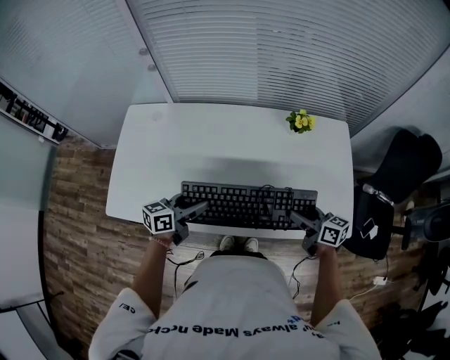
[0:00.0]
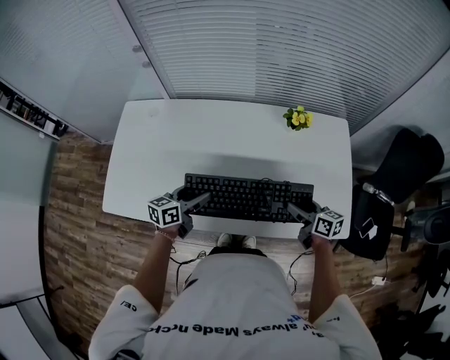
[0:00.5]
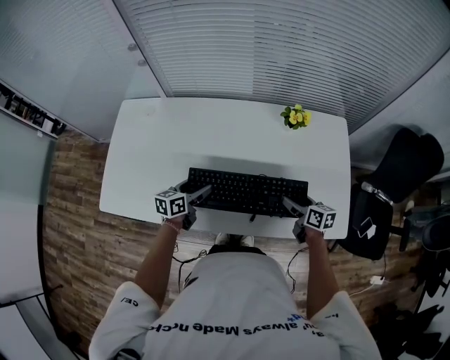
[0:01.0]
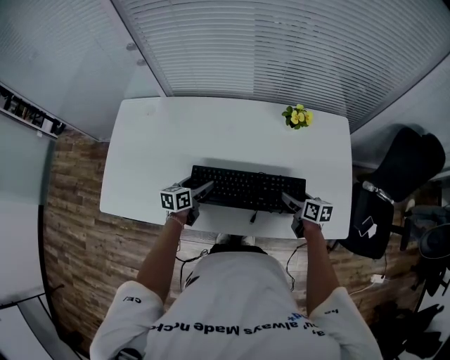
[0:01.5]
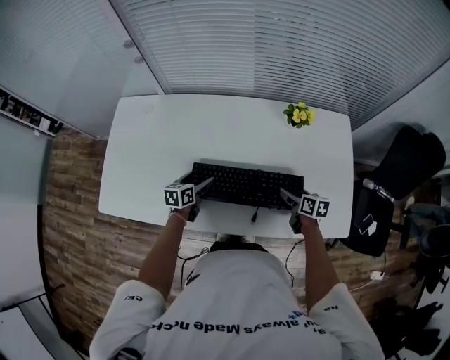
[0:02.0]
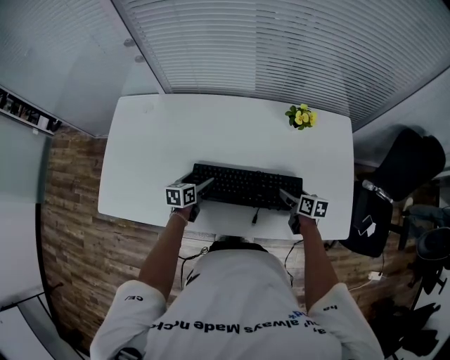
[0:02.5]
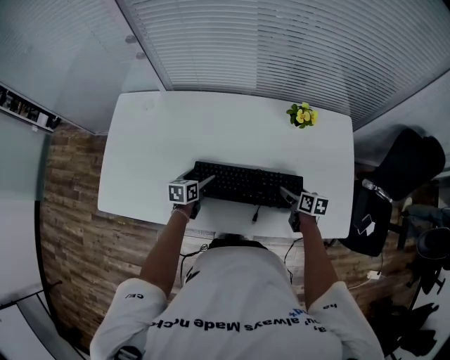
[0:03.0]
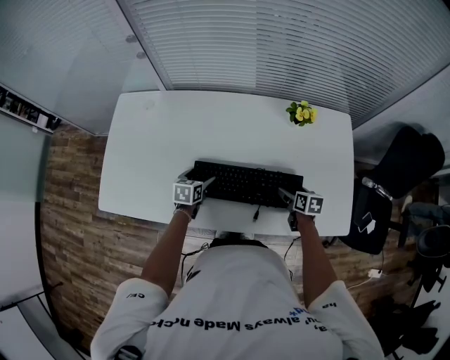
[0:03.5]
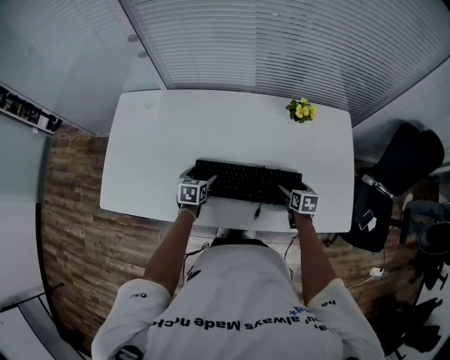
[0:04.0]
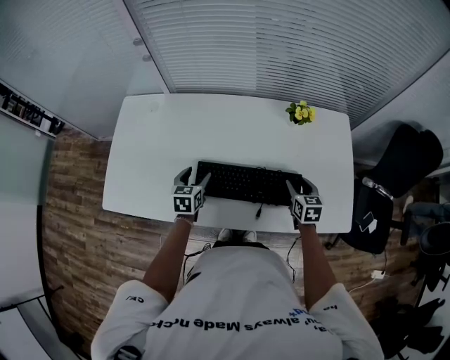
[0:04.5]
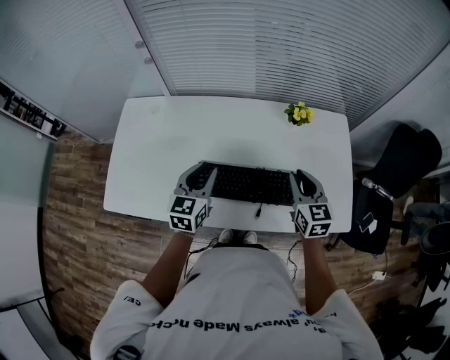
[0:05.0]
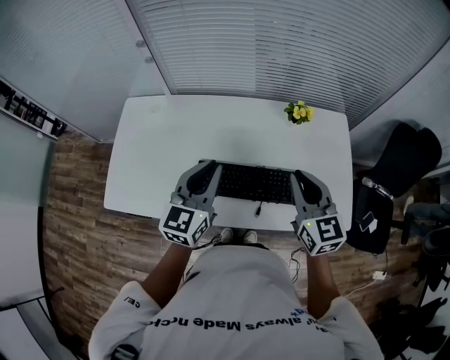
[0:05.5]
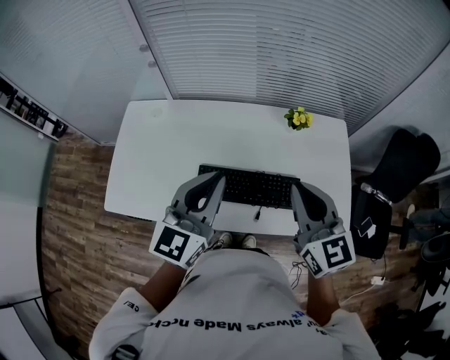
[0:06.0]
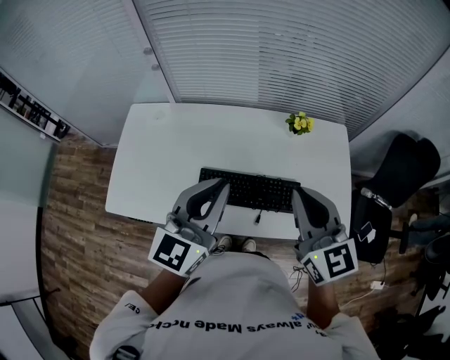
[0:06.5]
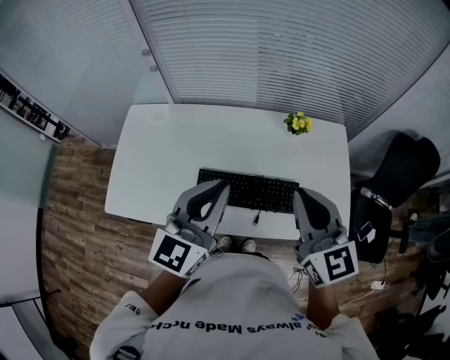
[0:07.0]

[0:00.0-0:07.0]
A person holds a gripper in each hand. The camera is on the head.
0:00.0 to 0:02.0: Both grippers travel together downward and forward, about 15 cm. The left gripper turns by roughly 30 degrees. Meanwhile the right gripper turns by about 30 degrees.
0:02.0 to 0:03.5: The grippers stay close to where they were, moving slightly.
0:03.5 to 0:05.0: Both grippers move upward, roughly 25 cm. The right gripper swivels about 40 degrees, and closes up. Meanwhile the left gripper swivels some 30 degrees, and closes its fingers.
0:05.0 to 0:07.0: The right gripper heads upward and backward, covering roughly 20 cm, while the left gripper heads upward, covering roughly 20 cm, and turns by some 20 degrees.

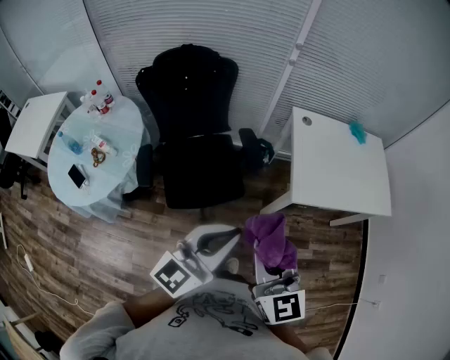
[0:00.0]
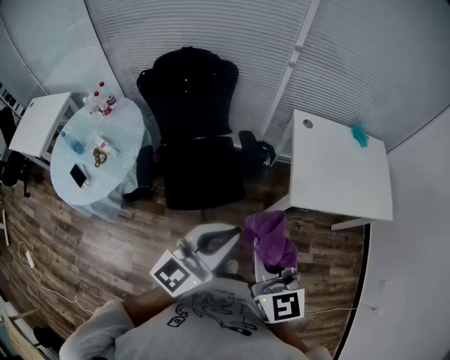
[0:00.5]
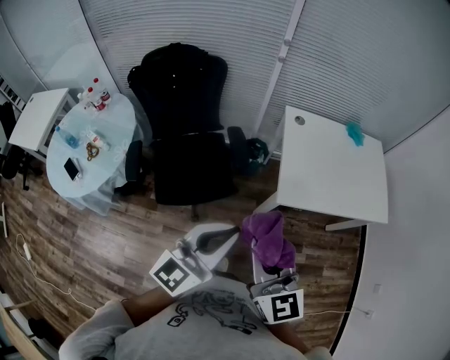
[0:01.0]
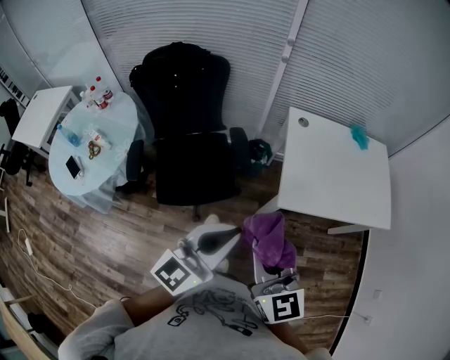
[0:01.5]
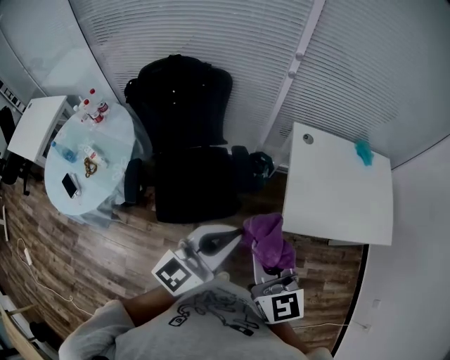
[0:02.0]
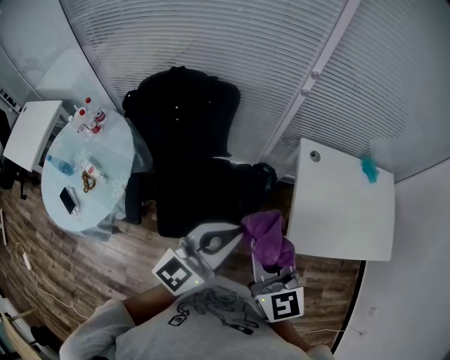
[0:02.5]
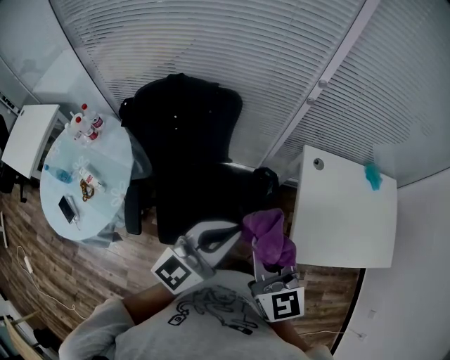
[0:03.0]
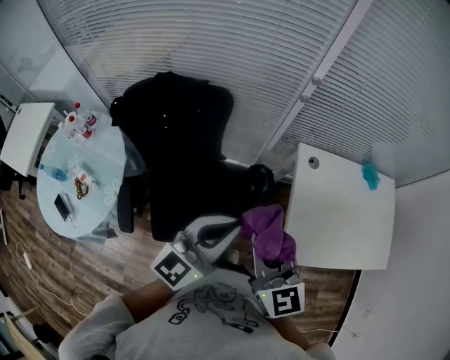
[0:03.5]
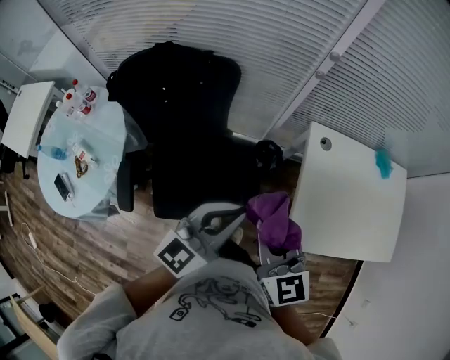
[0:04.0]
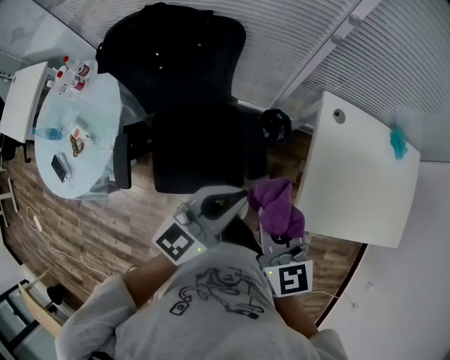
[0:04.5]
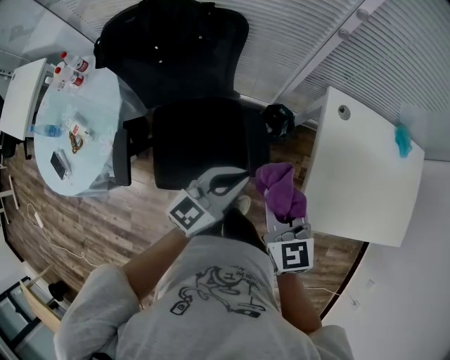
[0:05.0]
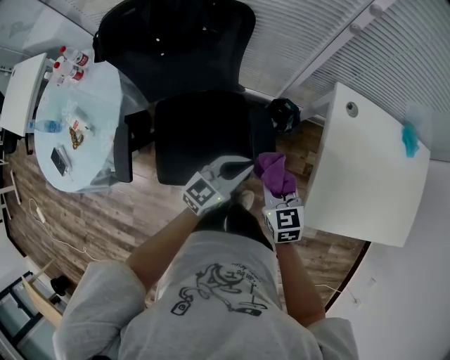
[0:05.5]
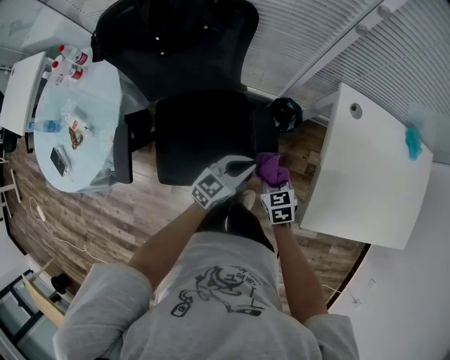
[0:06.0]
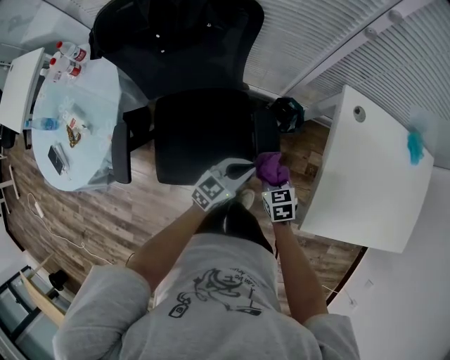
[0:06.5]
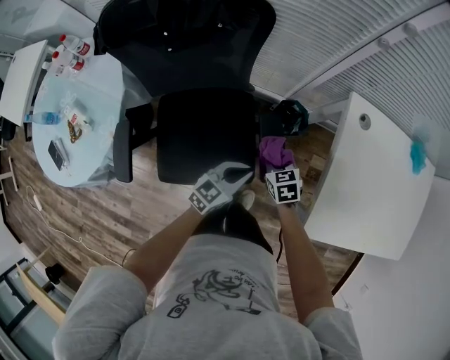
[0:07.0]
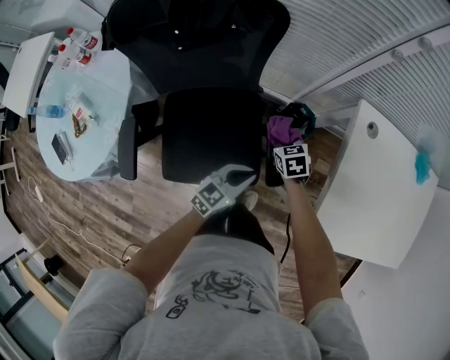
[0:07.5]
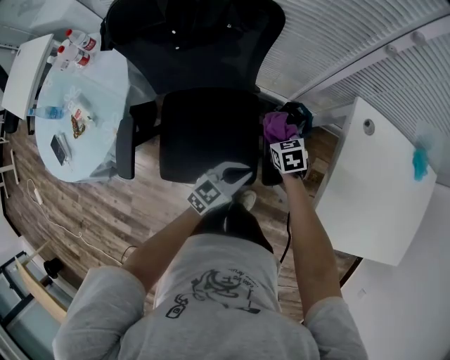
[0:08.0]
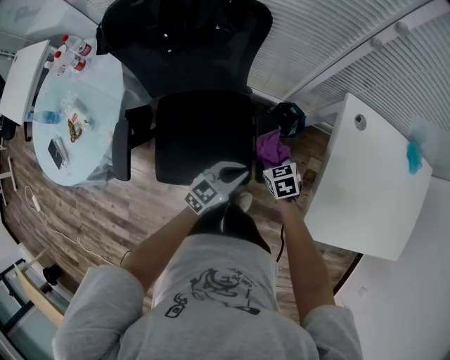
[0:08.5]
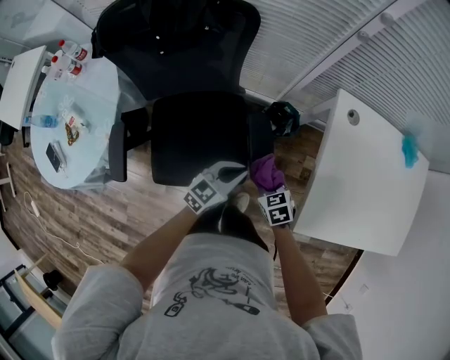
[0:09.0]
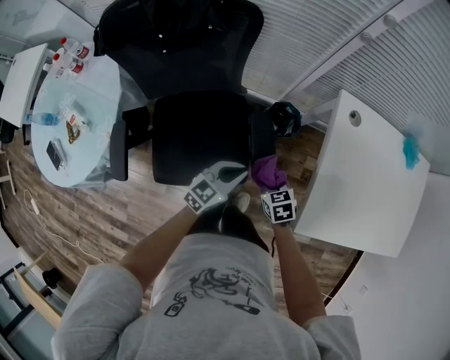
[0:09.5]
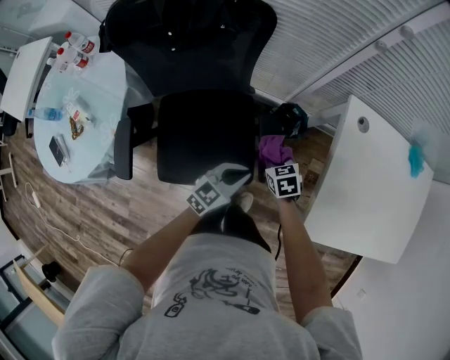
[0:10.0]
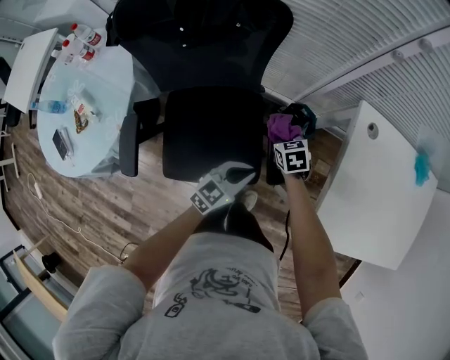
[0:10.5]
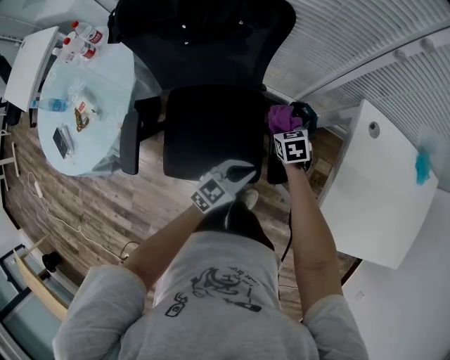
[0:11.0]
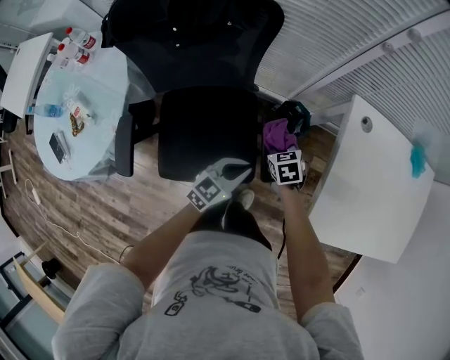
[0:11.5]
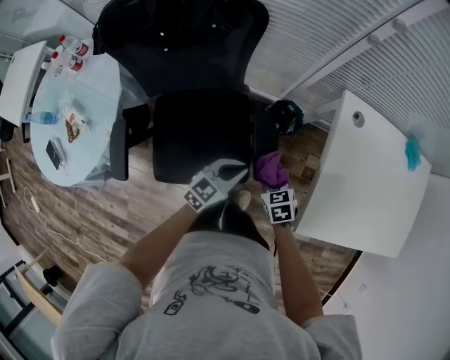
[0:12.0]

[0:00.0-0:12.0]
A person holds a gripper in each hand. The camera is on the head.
0:00.0 to 0:02.0: The left gripper heads forward and to the right, covering approximately 15 cm. Meanwhile the right gripper moves forward, some 15 cm.
0:02.0 to 0:04.0: The two grippers go some 20 cm forward.
0:04.0 to 0:06.0: Both grippers move downward, about 35 cm. The right gripper points its fingers some 30 degrees further downward.
0:06.0 to 0:08.0: The right gripper is displaced forward by about 15 cm.
0:08.0 to 0:10.0: The right gripper travels backward by some 5 cm.
0:10.0 to 0:12.0: The right gripper is displaced backward by about 10 cm.

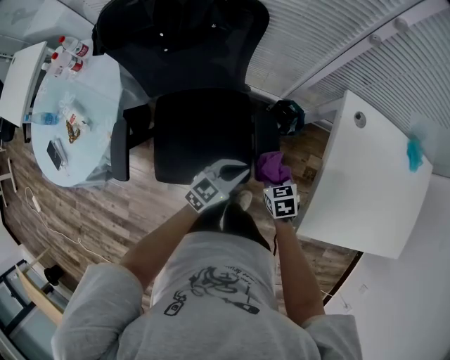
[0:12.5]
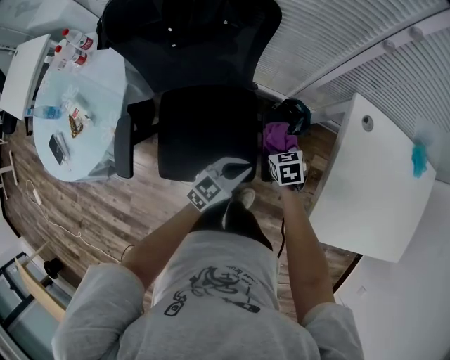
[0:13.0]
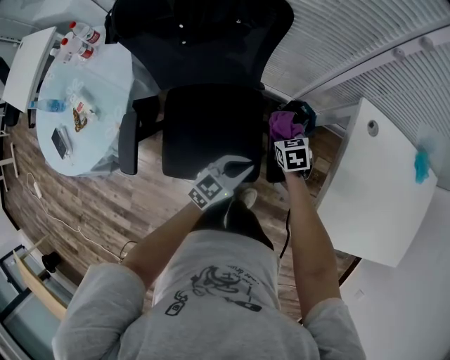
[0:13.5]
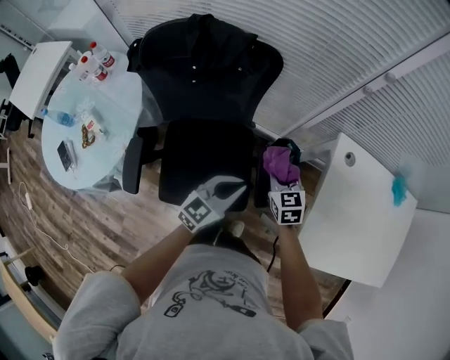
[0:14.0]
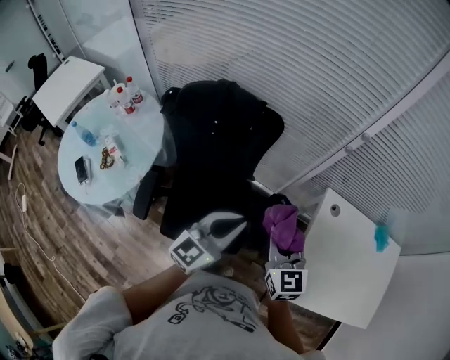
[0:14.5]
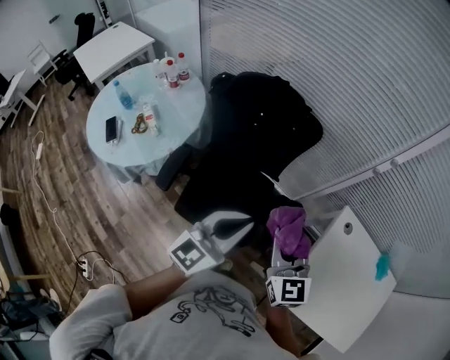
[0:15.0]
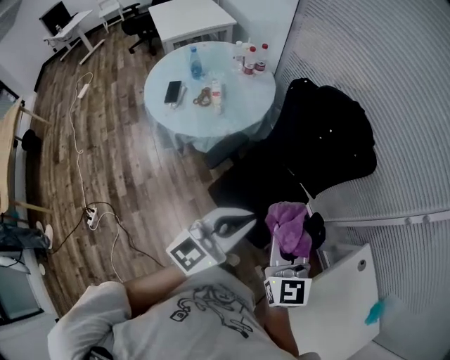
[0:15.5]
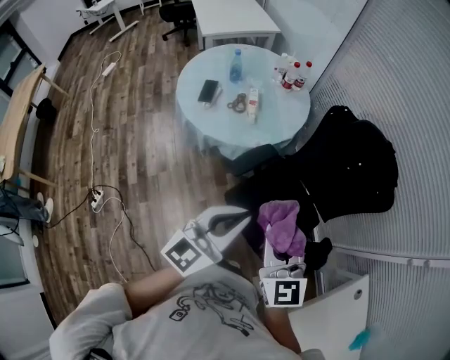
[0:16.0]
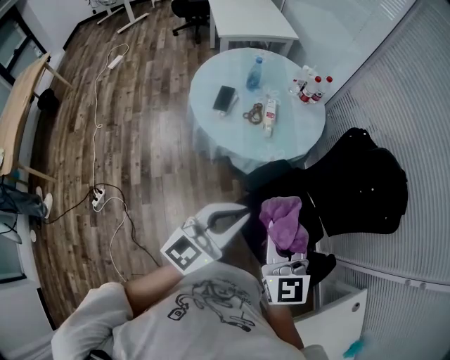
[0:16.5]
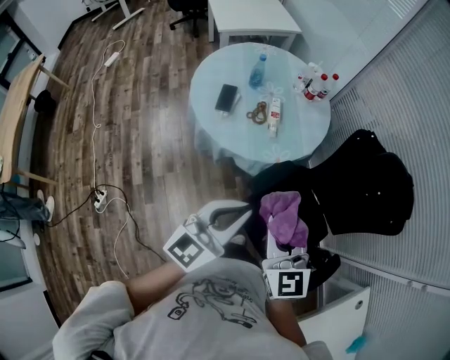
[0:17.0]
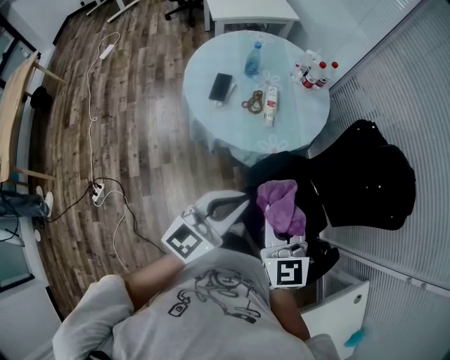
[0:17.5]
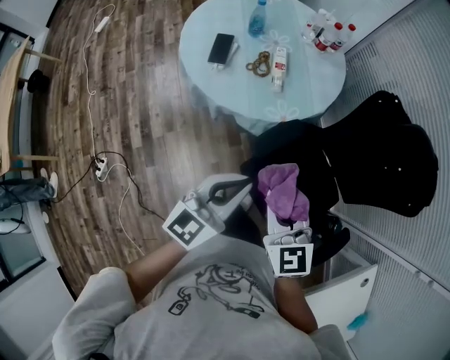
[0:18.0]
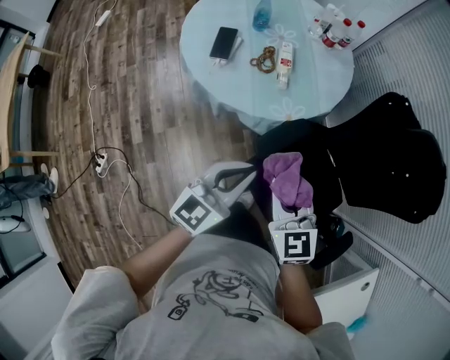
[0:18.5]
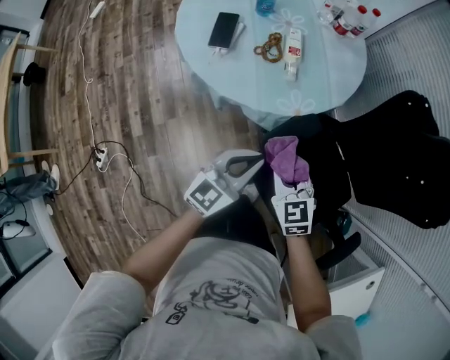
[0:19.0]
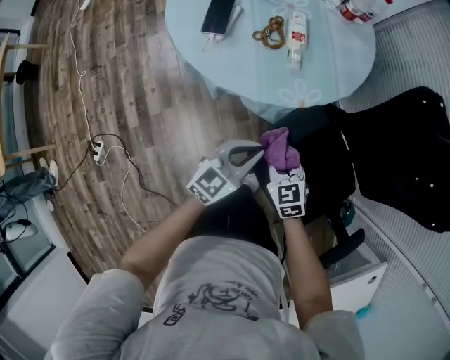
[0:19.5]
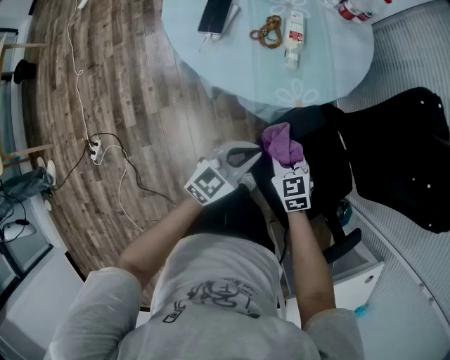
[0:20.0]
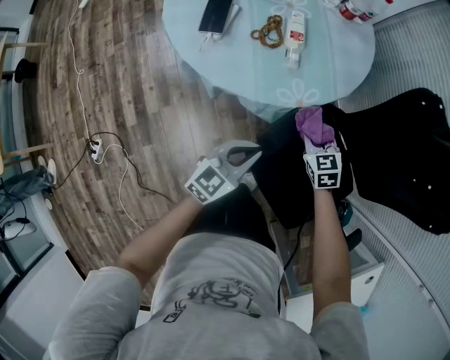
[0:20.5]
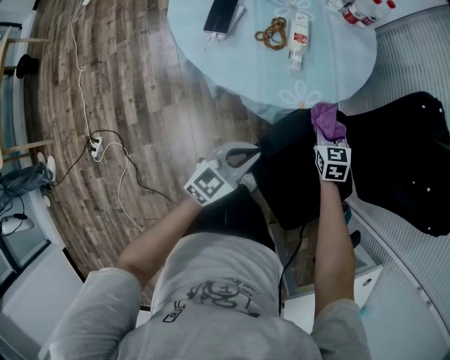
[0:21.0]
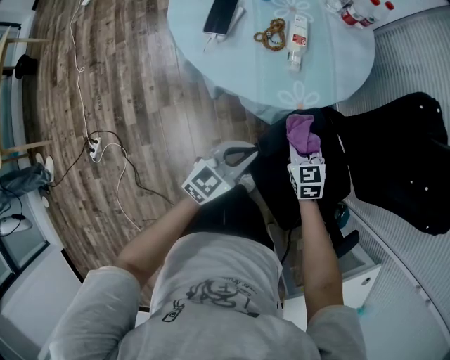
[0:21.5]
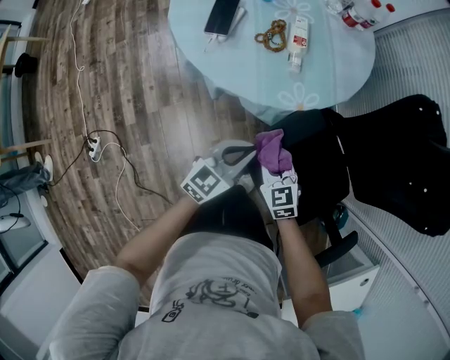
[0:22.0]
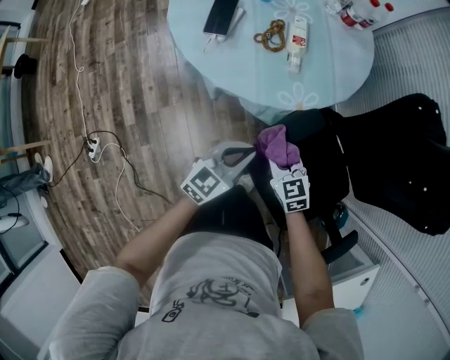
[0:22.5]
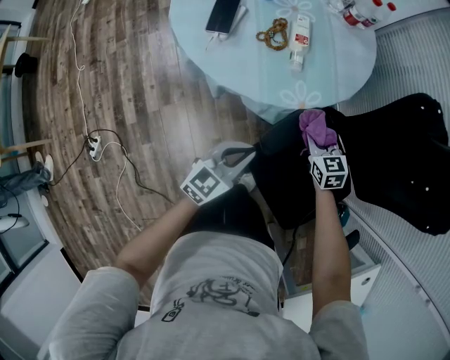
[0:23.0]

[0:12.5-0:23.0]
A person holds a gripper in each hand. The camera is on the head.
0:12.5 to 0:14.5: The grippers both shift upward by about 35 cm. The right gripper tips its fingers upward by some 40 degrees, while the left gripper changes its angle by roughly 30 degrees.
0:14.5 to 0:16.5: The two grippers travel together, approximately 50 cm. The right gripper rotates about 50 degrees; the left gripper rotates approximately 50 degrees.
0:16.5 to 0:19.0: The grippers both shift downward and forward by about 35 cm. The right gripper rotates roughly 30 degrees.
0:19.0 to 0:21.0: The left gripper heads downward, covering approximately 10 cm. The right gripper travels forward, downward and to the right by some 25 cm.
0:21.0 to 0:23.0: The right gripper goes backward and returns, about 15 cm each way.
